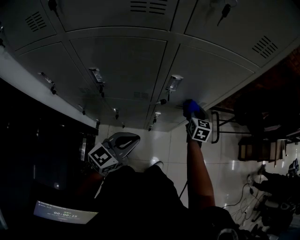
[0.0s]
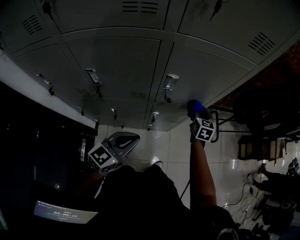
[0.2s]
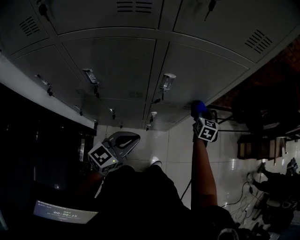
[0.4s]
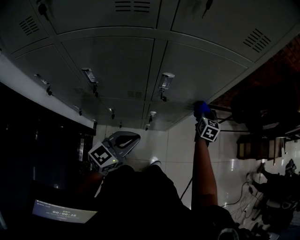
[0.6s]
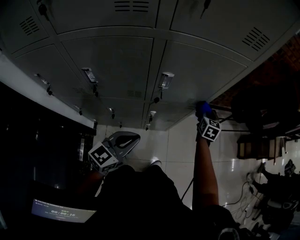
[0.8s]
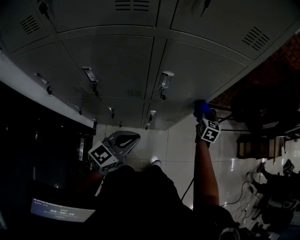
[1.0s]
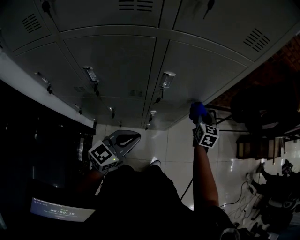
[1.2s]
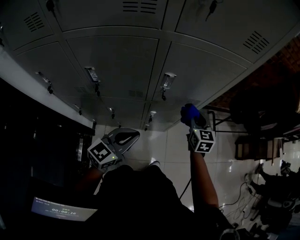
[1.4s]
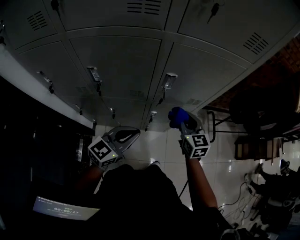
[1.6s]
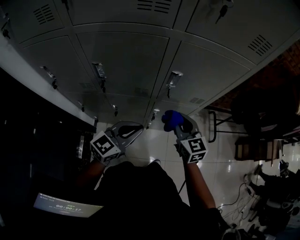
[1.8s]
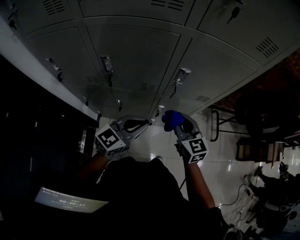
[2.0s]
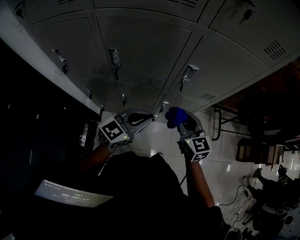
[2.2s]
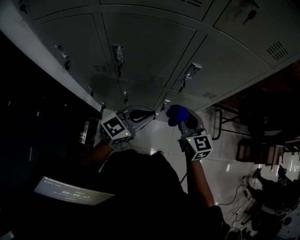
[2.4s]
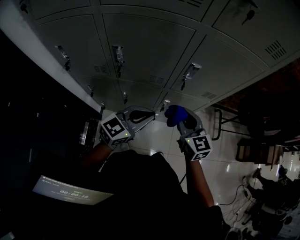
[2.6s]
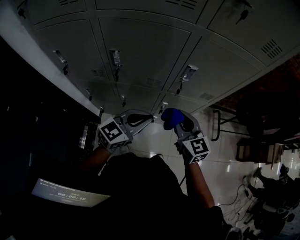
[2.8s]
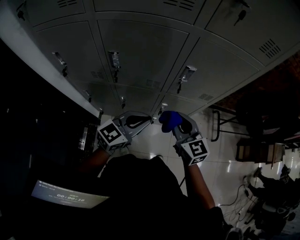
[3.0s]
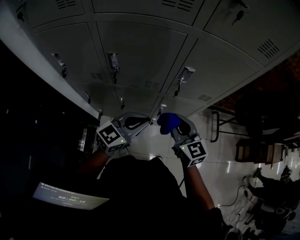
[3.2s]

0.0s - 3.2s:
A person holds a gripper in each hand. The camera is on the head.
0.0s - 1.6s: The right gripper goes approximately 15 cm backward and upward, and turns by some 20 degrees.
1.6s - 3.2s: The right gripper moves backward and to the left, about 15 cm.

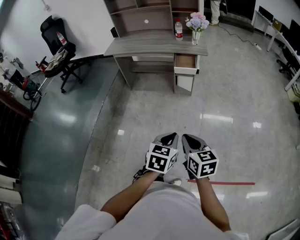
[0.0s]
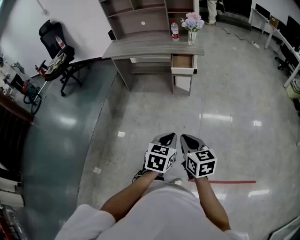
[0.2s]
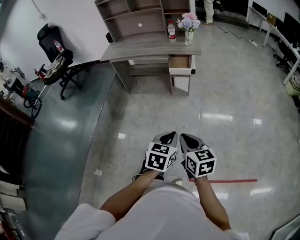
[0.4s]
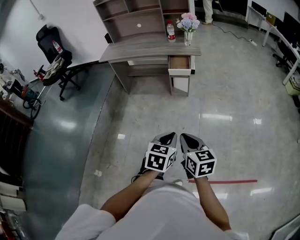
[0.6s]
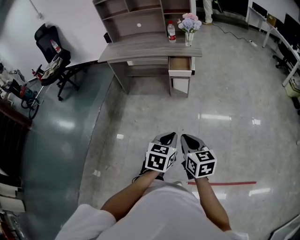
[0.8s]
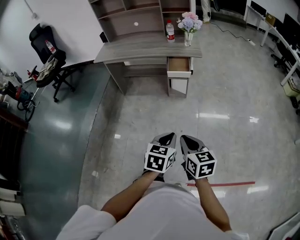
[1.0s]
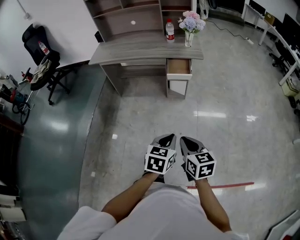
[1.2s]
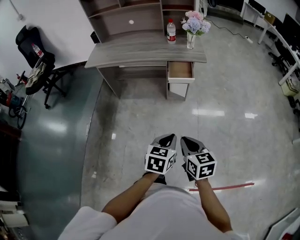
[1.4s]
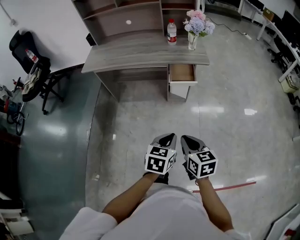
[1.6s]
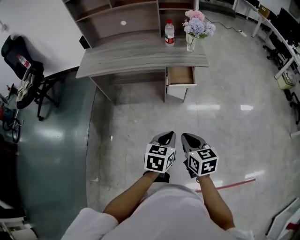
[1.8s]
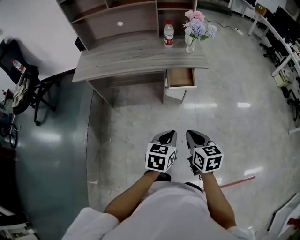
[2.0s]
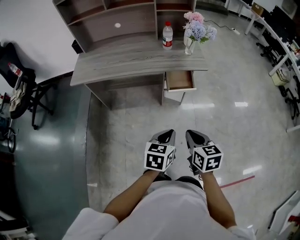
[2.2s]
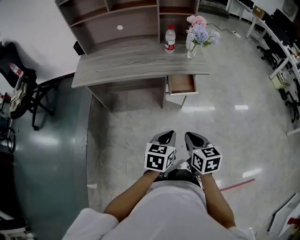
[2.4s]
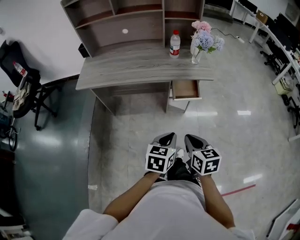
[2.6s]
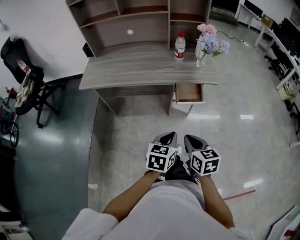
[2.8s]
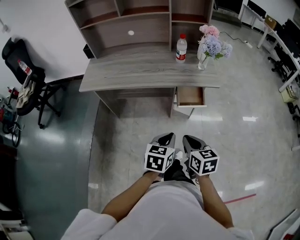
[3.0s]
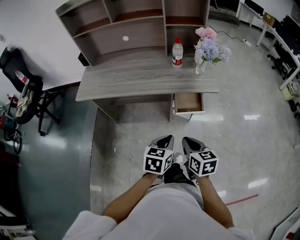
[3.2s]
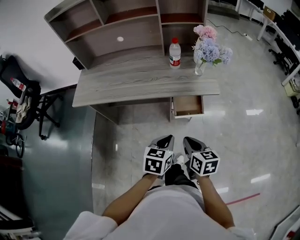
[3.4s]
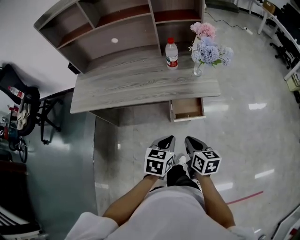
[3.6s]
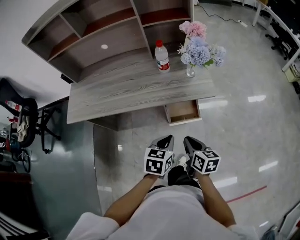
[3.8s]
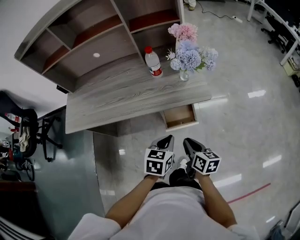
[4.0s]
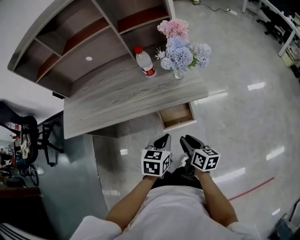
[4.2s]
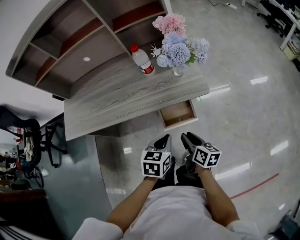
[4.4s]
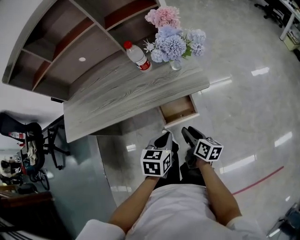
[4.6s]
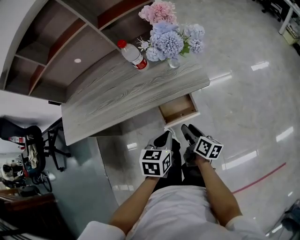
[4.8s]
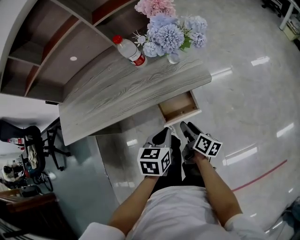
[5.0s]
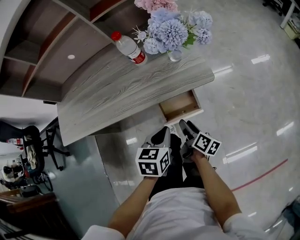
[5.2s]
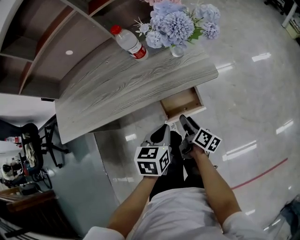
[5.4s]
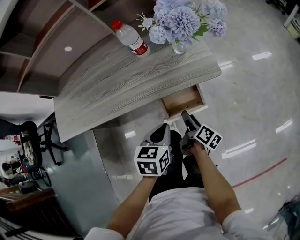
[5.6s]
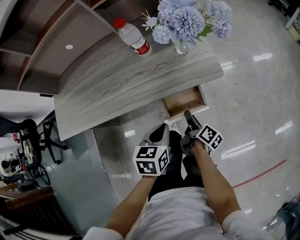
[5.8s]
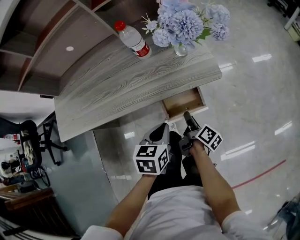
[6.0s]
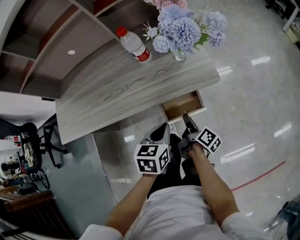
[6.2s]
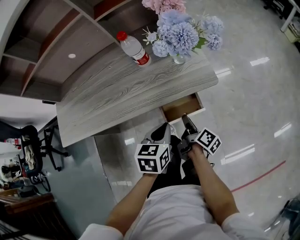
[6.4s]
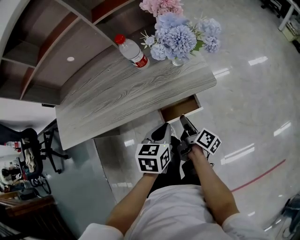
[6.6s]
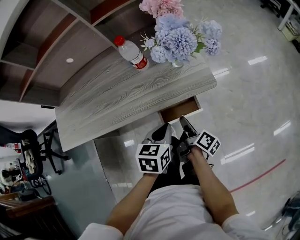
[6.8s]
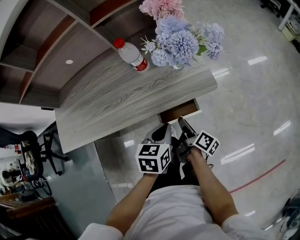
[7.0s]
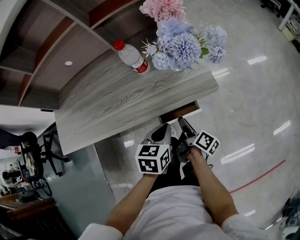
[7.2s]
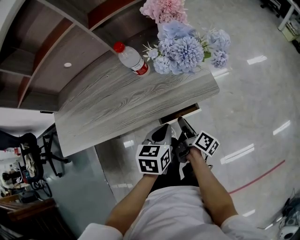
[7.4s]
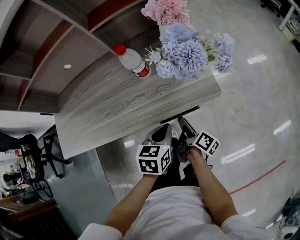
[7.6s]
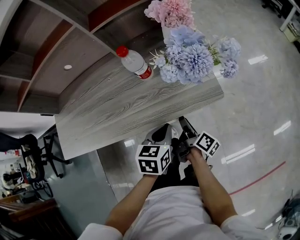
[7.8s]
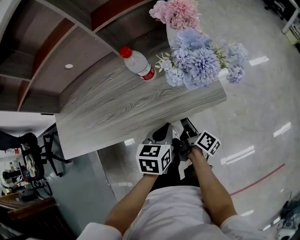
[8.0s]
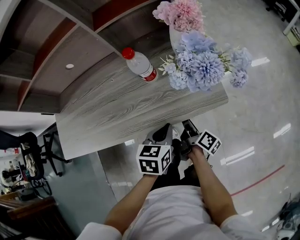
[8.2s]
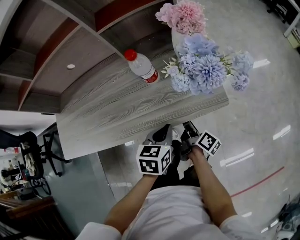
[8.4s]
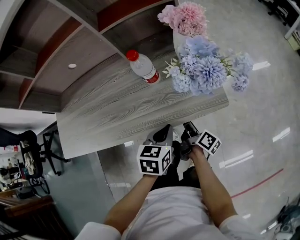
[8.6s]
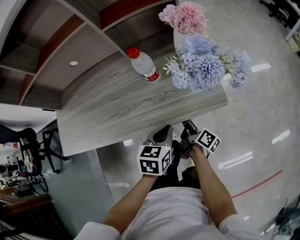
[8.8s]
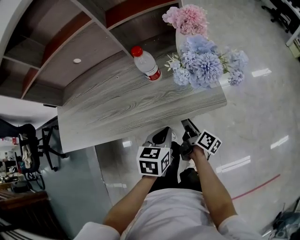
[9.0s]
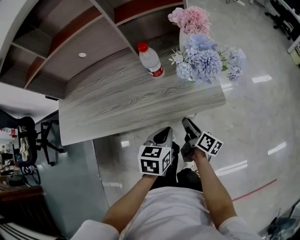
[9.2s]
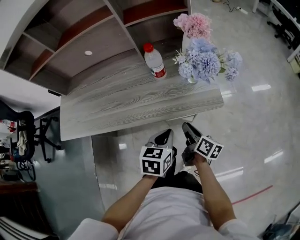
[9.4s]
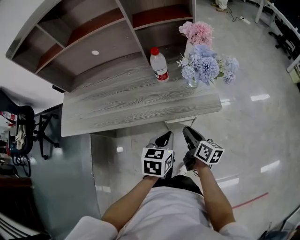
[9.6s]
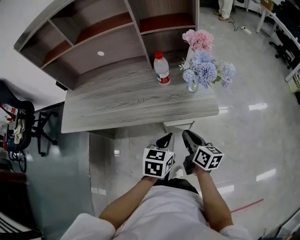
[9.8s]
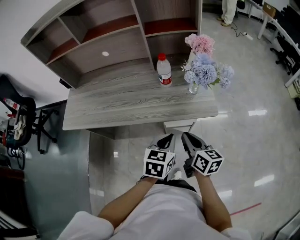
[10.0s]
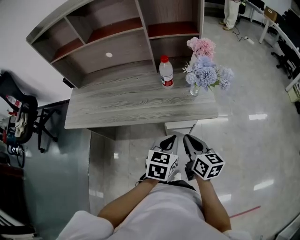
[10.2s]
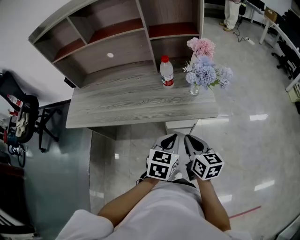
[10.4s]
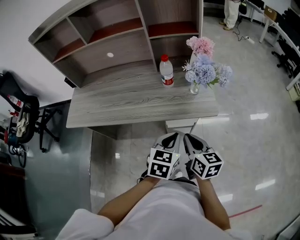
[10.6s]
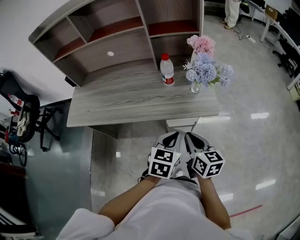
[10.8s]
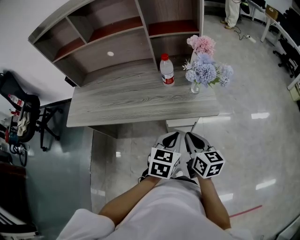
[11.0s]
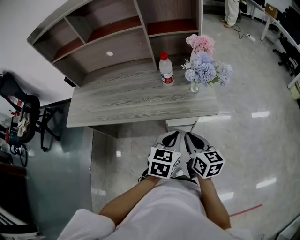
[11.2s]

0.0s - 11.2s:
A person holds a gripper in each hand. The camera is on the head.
0.0s - 1.6s: The grippers both shift forward by some 25 cm.
1.6s - 3.2s: Both grippers travel together forward, roughly 20 cm.
3.2s - 4.8s: The grippers both shift forward, downward and to the right by approximately 25 cm. The right gripper rolls clockwise, seen from behind, by about 50 degrees, and opens.
4.8s - 6.4s: The left gripper shifts by about 5 cm. The right gripper moves roughly 5 cm, and swivels roughly 30 degrees.
6.4s - 8.0s: The grippers both shift forward by some 5 cm.
8.0s - 9.6s: The right gripper heads upward and backward, covering about 10 cm, rotates some 40 degrees, and closes up, while the left gripper heads backward, covering approximately 5 cm.
9.6s - 11.2s: The left gripper travels upward by some 5 cm. Meanwhile the right gripper goes about 10 cm upward and backward, and swivels approximately 30 degrees.

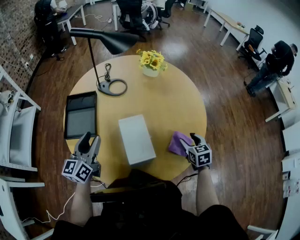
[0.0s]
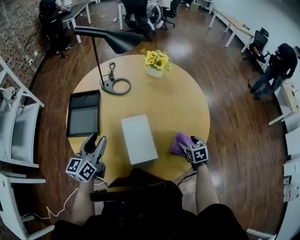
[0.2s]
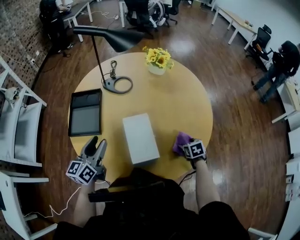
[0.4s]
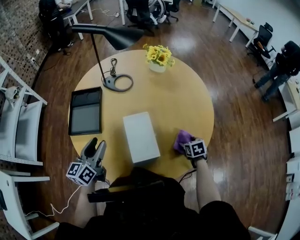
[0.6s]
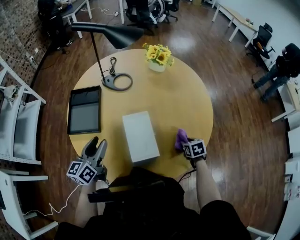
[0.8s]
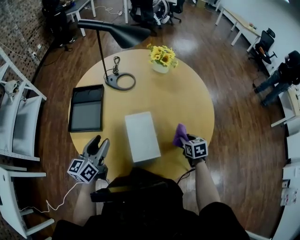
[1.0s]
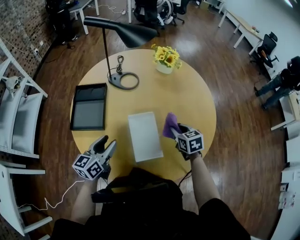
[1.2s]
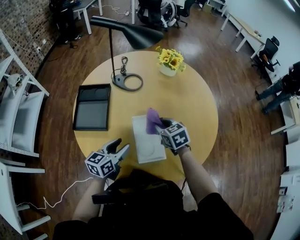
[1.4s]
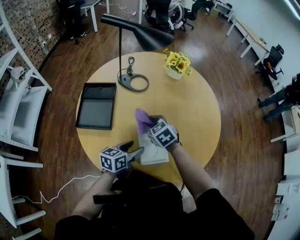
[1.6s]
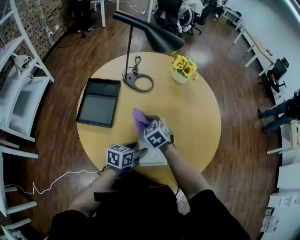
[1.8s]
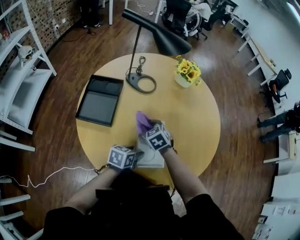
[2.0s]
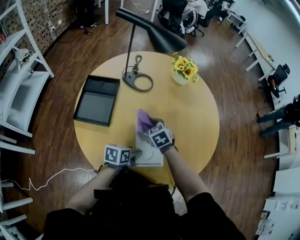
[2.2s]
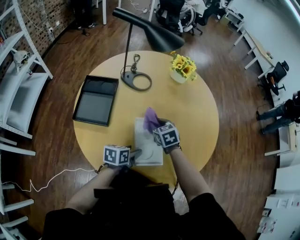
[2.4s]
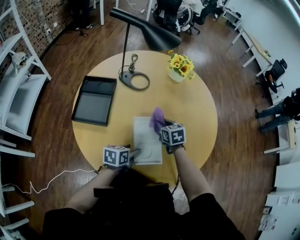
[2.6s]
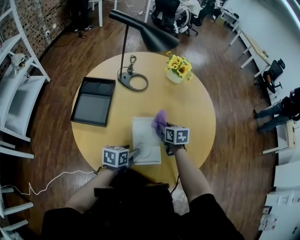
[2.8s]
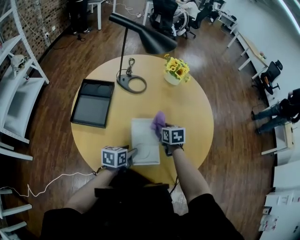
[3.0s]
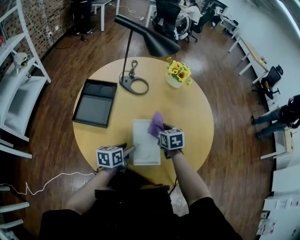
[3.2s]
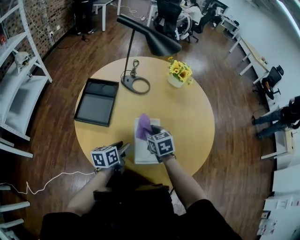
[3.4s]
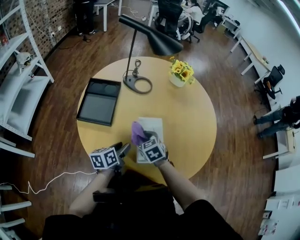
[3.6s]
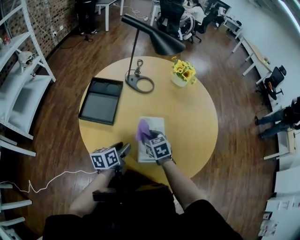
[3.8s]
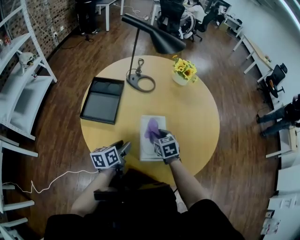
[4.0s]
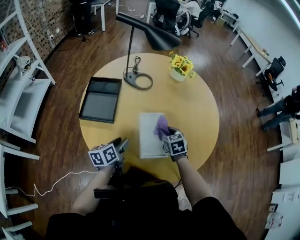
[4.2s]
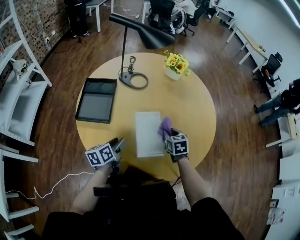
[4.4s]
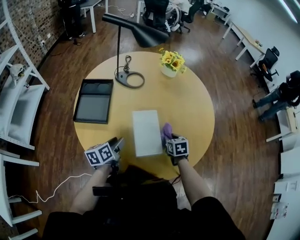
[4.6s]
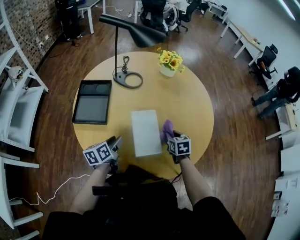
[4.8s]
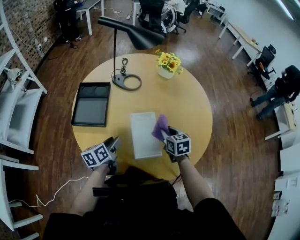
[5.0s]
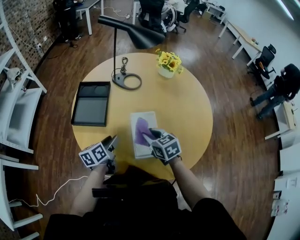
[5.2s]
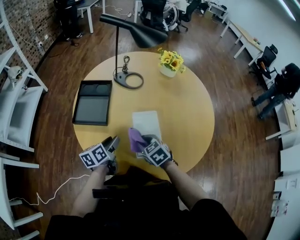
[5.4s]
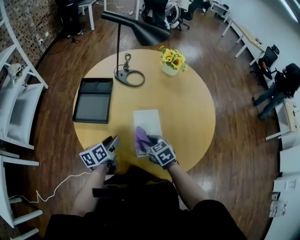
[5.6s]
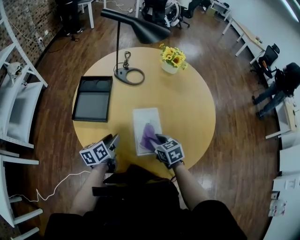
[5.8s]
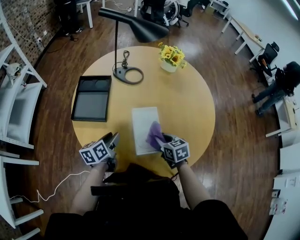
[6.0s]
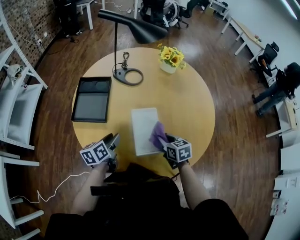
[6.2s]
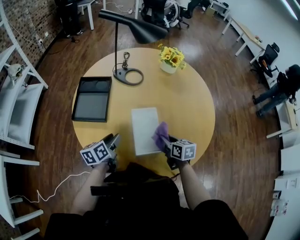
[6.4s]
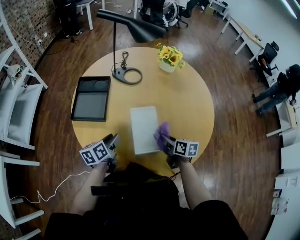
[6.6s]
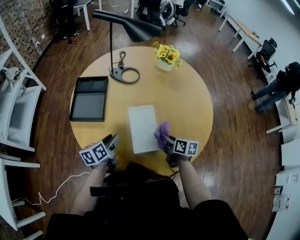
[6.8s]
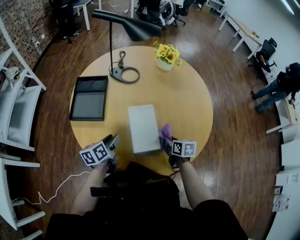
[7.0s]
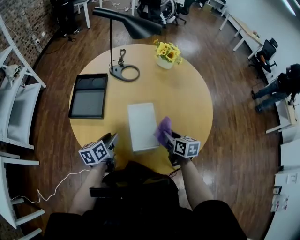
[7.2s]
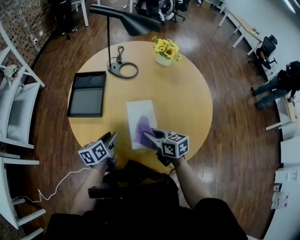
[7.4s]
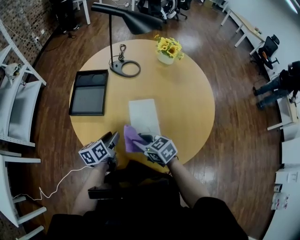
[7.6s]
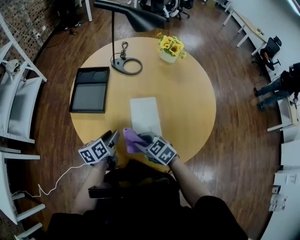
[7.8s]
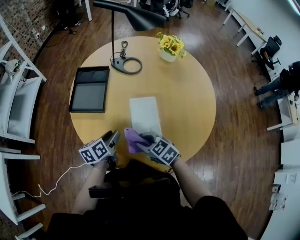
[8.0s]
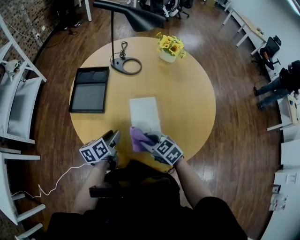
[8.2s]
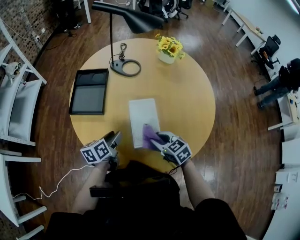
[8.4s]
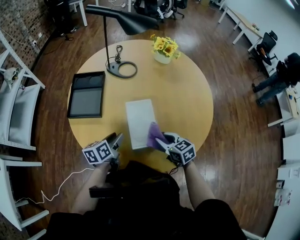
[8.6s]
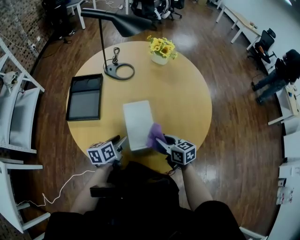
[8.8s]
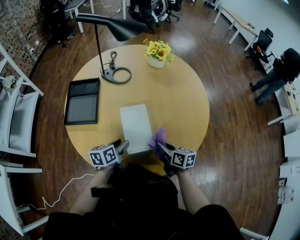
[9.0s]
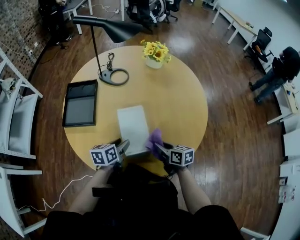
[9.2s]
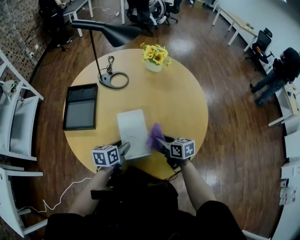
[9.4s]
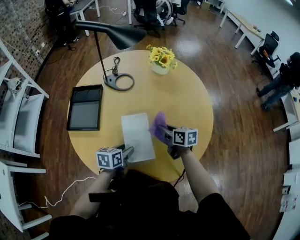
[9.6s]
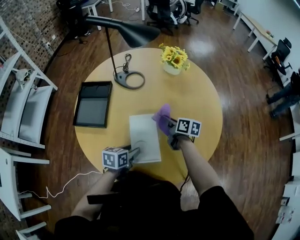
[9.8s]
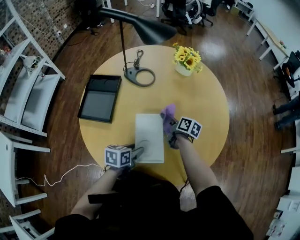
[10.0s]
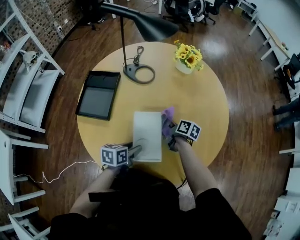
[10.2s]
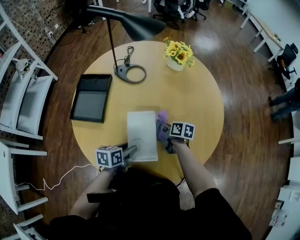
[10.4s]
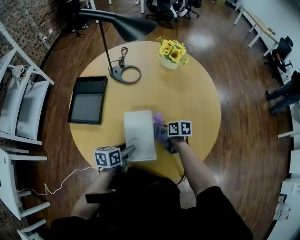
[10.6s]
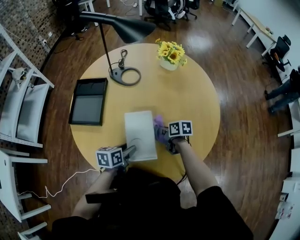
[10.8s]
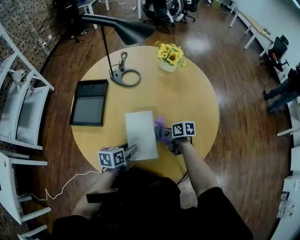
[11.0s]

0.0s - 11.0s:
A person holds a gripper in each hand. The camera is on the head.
0.0s - 1.6s: The left gripper travels downward and to the right by roughly 20 cm, and turns by roughly 30 degrees, while the right gripper shifts about 30 cm to the left, turns by roughly 30 degrees, and closes its fingers.
1.6s - 3.2s: The right gripper heads to the right, covering some 10 cm, and rotates approximately 20 degrees.
3.2s - 4.8s: The left gripper goes about 5 cm to the left. Meanwhile the right gripper shifts roughly 15 cm to the right, backward and downward.
4.8s - 6.2s: The right gripper moves to the left, some 5 cm.
6.2s - 7.8s: The right gripper is displaced to the left by roughly 15 cm, and changes its angle by some 30 degrees.
7.8s - 9.4s: The right gripper shifts approximately 20 cm to the right, and turns by approximately 40 degrees. The left gripper is displaced to the right by roughly 10 cm, and rotates approximately 20 degrees.
9.4s - 11.0s: The right gripper goes some 10 cm forward and downward, and rotates about 20 degrees.
